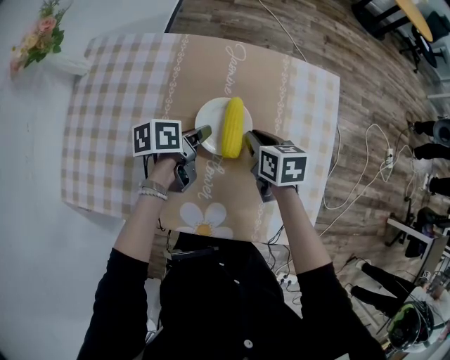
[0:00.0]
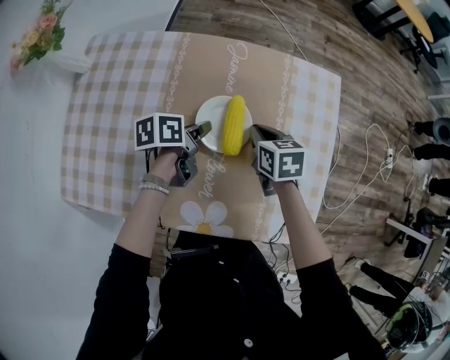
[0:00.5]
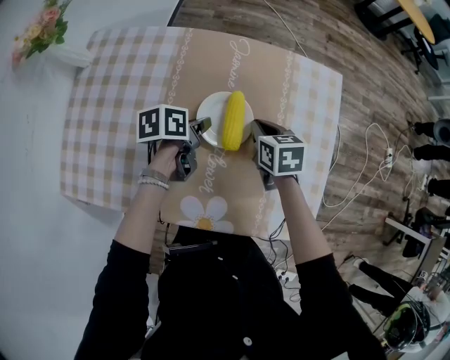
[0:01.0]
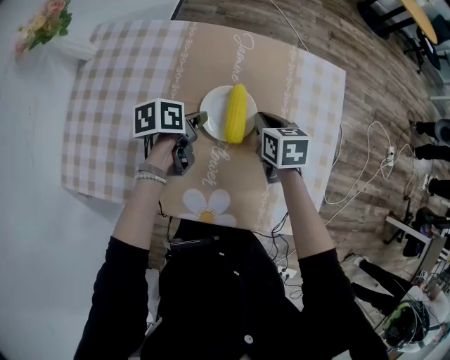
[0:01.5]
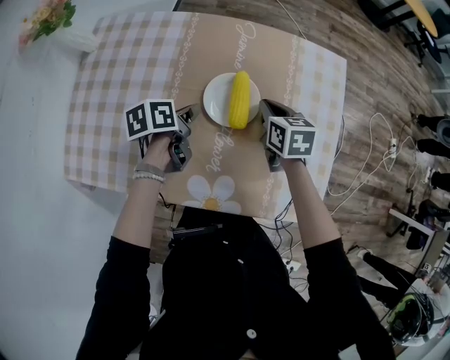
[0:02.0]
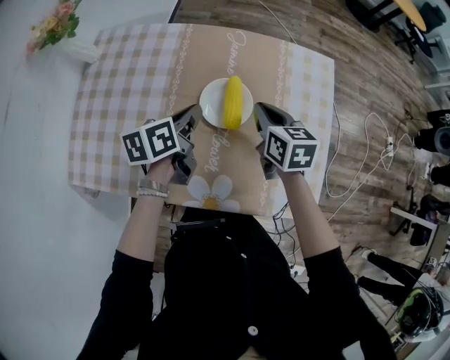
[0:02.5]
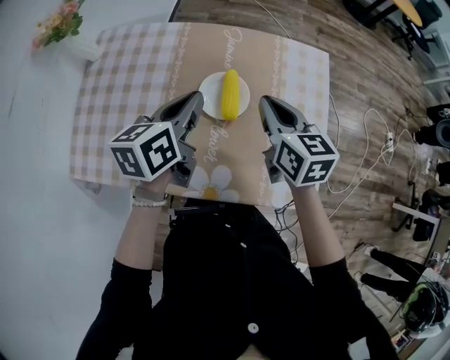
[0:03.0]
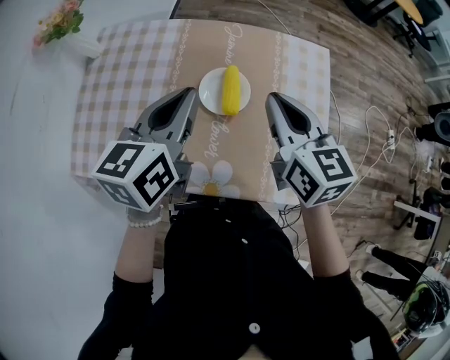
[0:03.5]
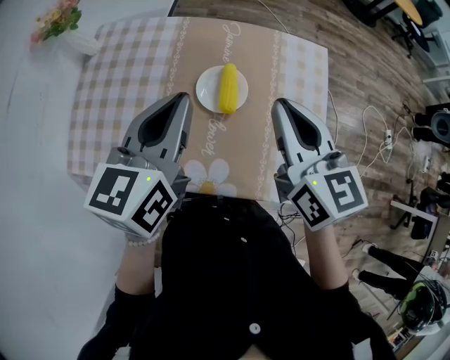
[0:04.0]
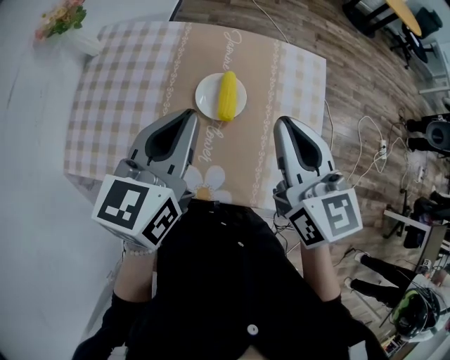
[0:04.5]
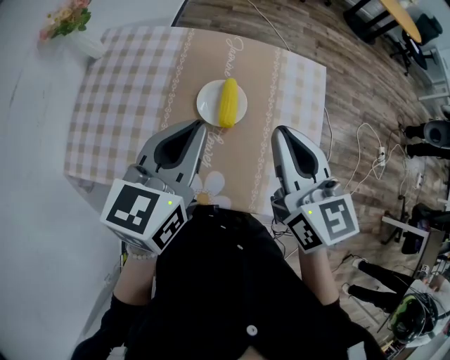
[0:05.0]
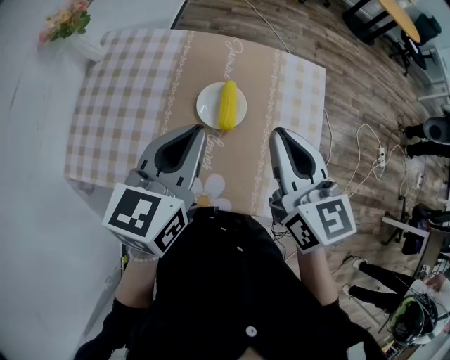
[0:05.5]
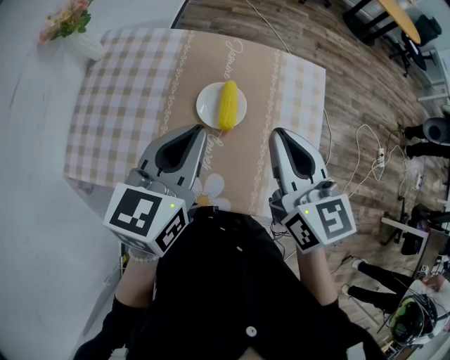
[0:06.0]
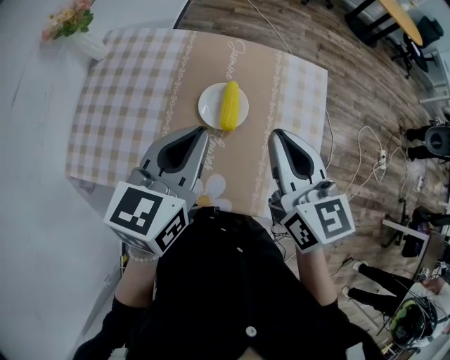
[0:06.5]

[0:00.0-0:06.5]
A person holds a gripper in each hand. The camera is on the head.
0:00.0 to 0:02.0: The left gripper shifts approximately 5 cm to the left.
0:02.0 to 0:04.5: The left gripper heads upward, covering roughly 30 cm, and changes its angle by about 50 degrees, while the right gripper moves upward and backward, about 30 cm, and points its fingers about 30 degrees further upward.
0:04.5 to 0:06.5: The grippers make only small movements.

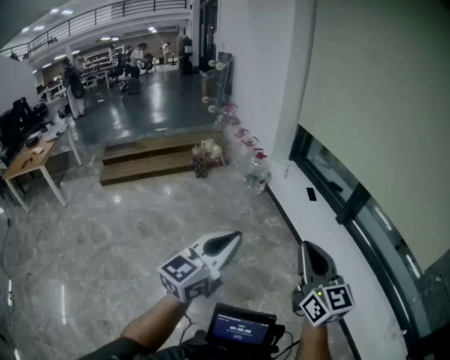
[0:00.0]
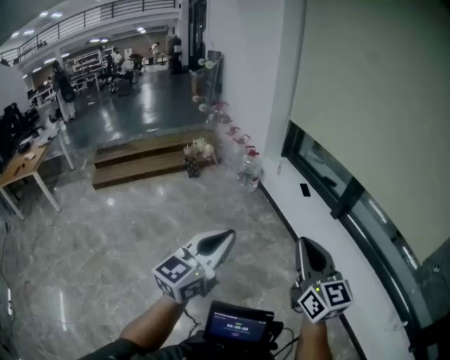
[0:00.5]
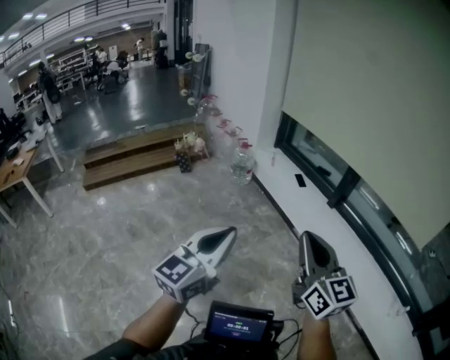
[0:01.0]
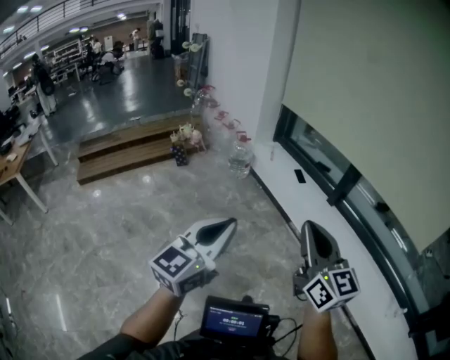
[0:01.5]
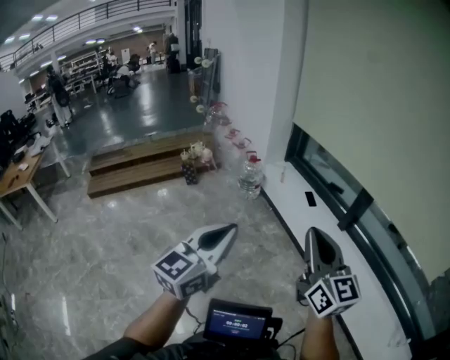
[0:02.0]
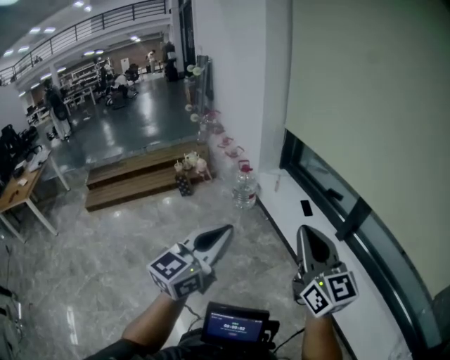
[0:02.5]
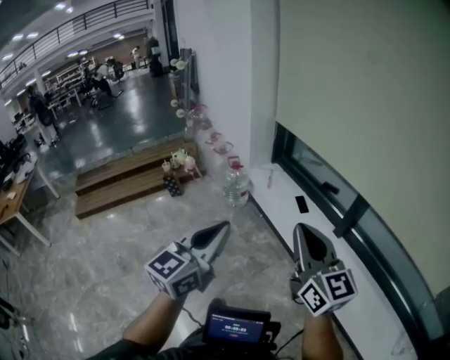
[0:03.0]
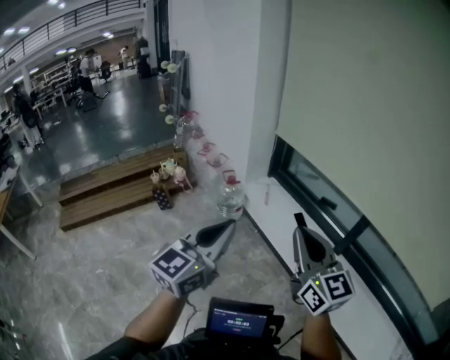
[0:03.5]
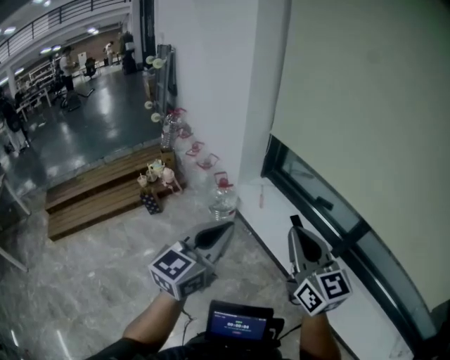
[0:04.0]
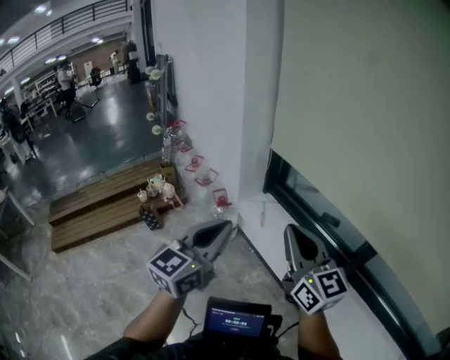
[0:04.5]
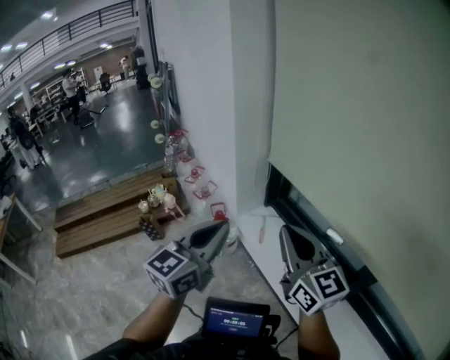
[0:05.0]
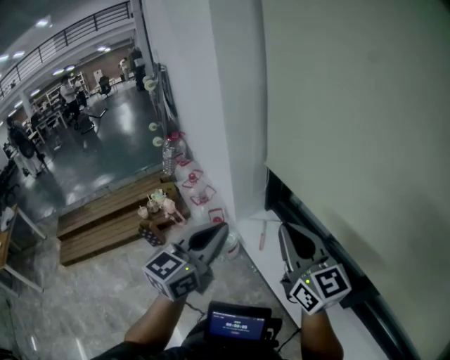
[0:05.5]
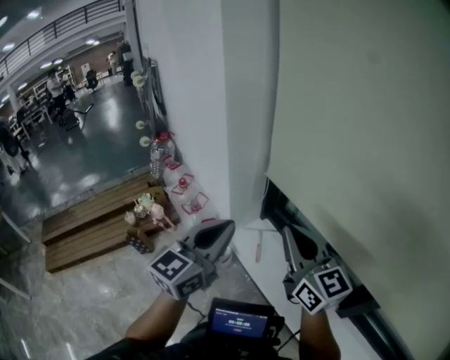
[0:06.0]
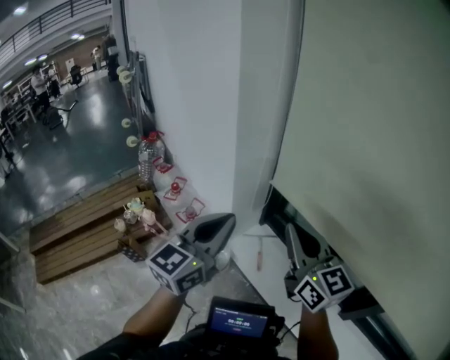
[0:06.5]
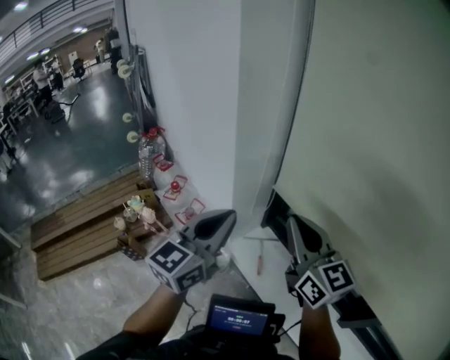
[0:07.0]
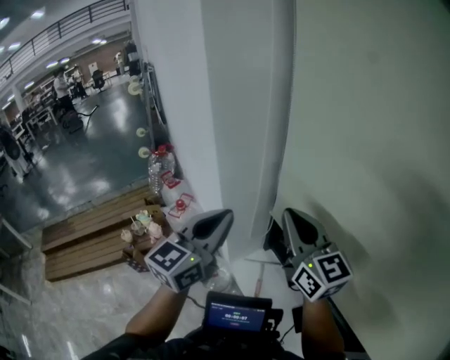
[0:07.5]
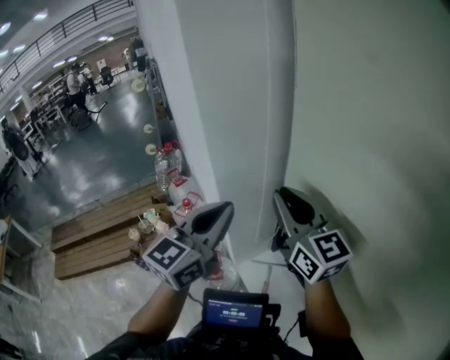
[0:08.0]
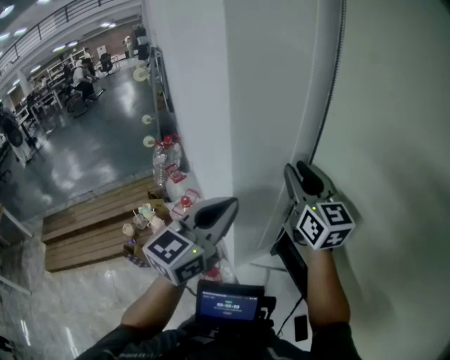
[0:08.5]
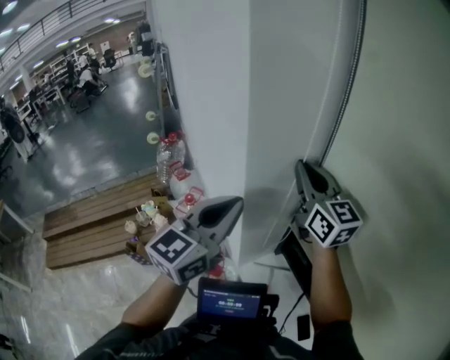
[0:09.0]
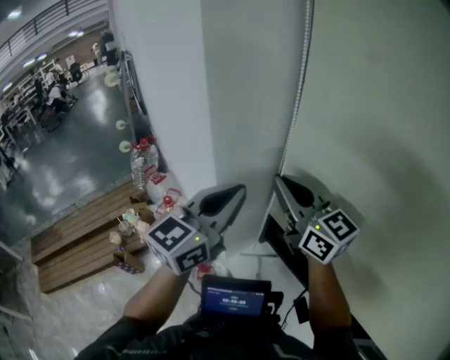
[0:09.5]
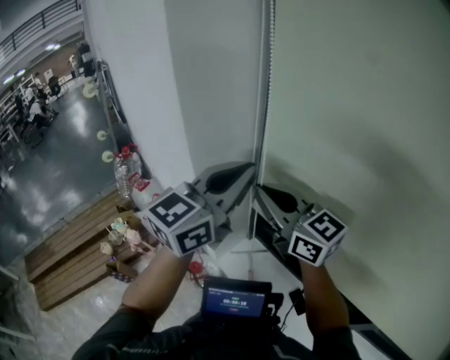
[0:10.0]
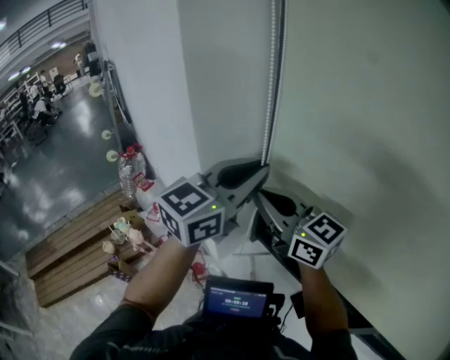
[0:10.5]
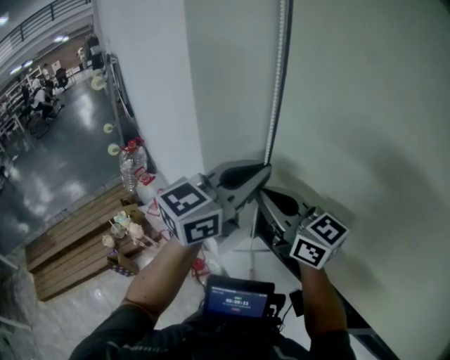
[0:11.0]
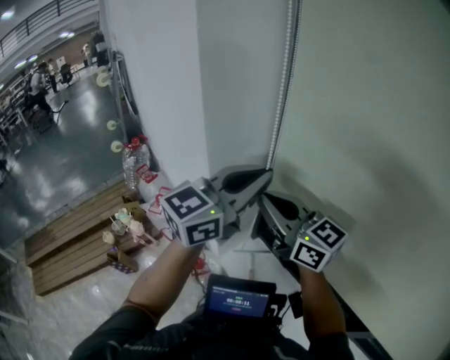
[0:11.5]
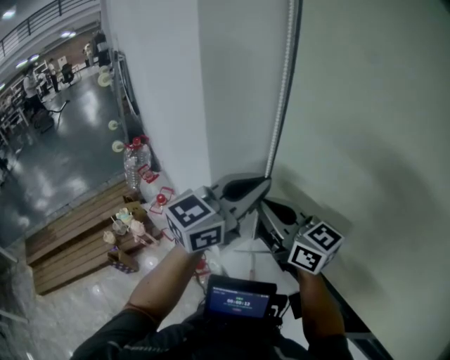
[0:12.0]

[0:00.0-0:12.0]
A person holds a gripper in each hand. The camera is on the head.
0:00.0 to 0:02.0: The two grippers go some 15 cm forward.
0:02.0 to 0:04.0: The grippers both shift forward by approximately 40 cm.
0:04.0 to 0:06.0: The pair of grippers is taken forward, approximately 40 cm.
0:06.0 to 0:08.0: Both grippers travel together forward, some 30 cm.
0:08.0 to 0:10.0: The left gripper is displaced upward and to the right by approximately 10 cm, and turns by roughly 20 degrees; the right gripper goes forward and returns, approximately 10 cm each way.
0:10.0 to 0:12.0: The grippers make only small movements.

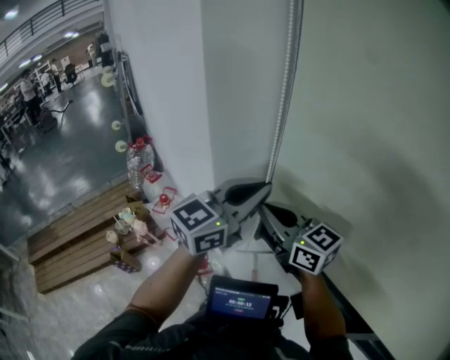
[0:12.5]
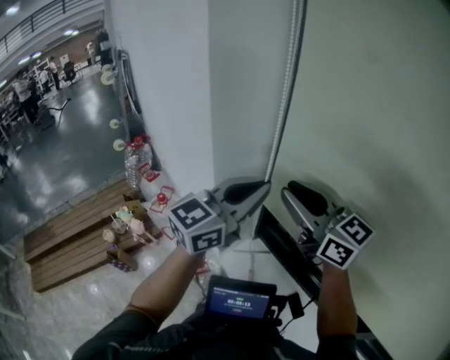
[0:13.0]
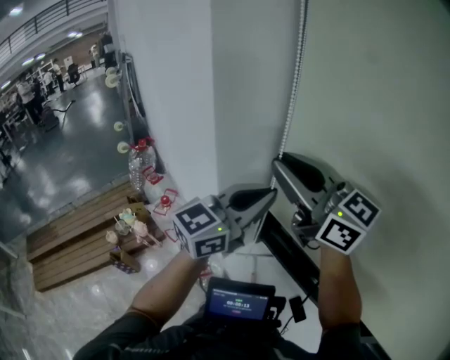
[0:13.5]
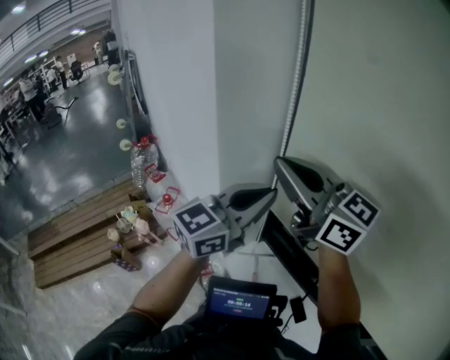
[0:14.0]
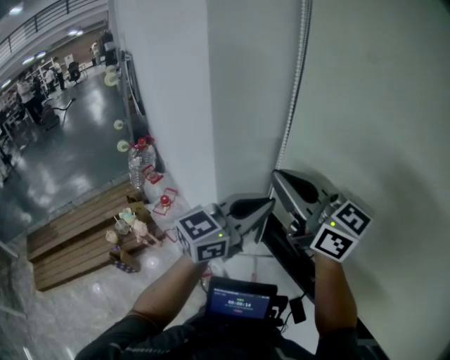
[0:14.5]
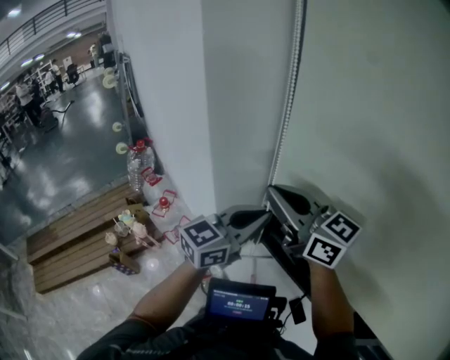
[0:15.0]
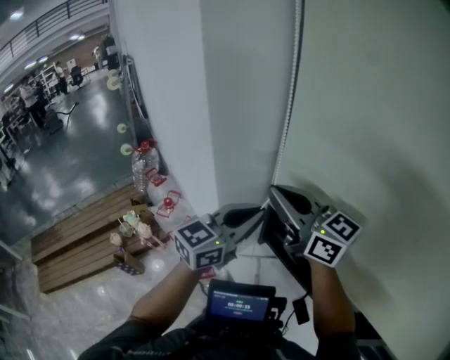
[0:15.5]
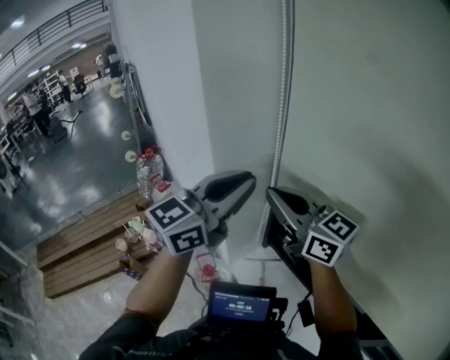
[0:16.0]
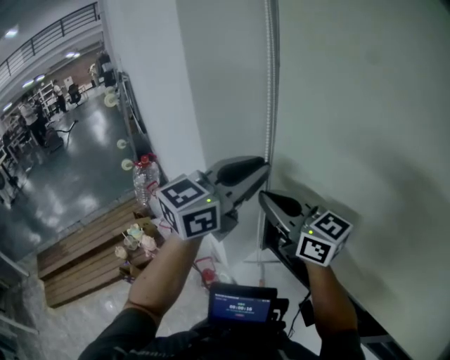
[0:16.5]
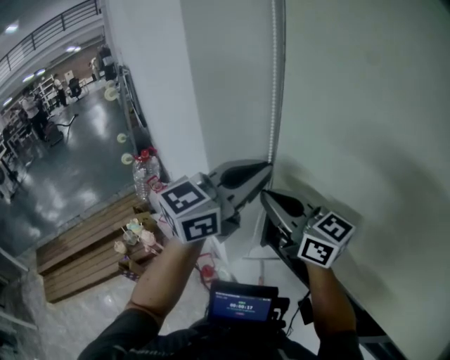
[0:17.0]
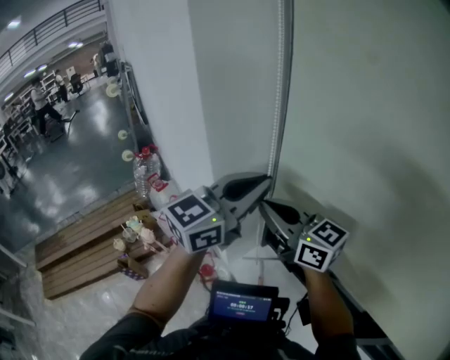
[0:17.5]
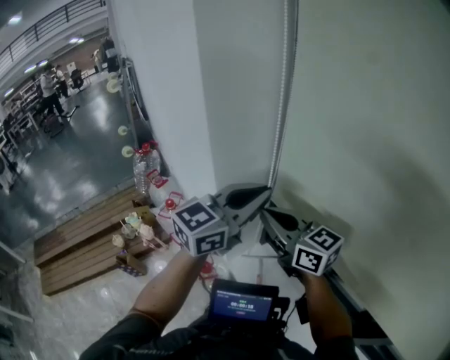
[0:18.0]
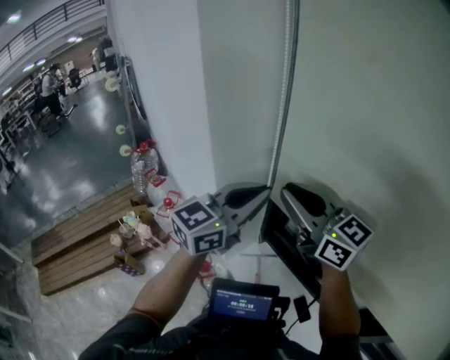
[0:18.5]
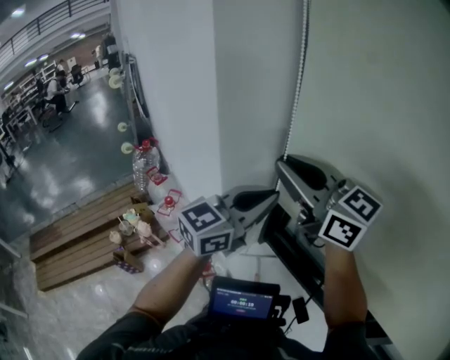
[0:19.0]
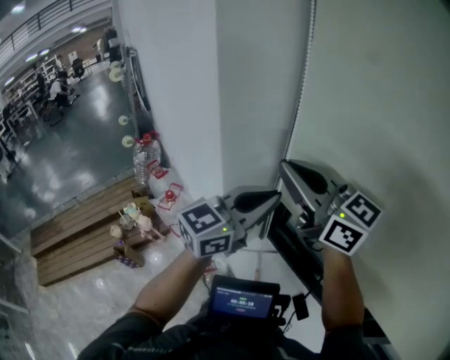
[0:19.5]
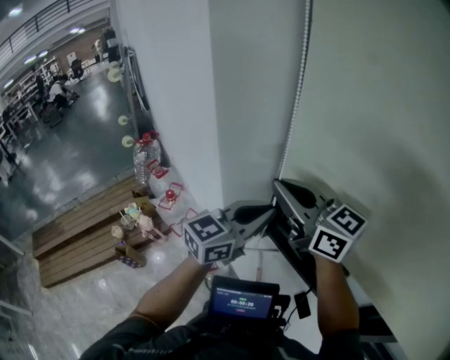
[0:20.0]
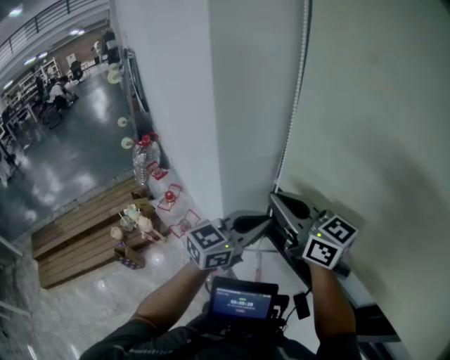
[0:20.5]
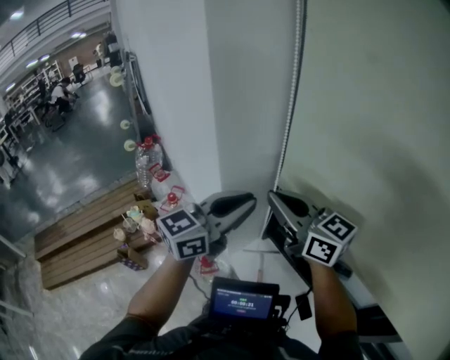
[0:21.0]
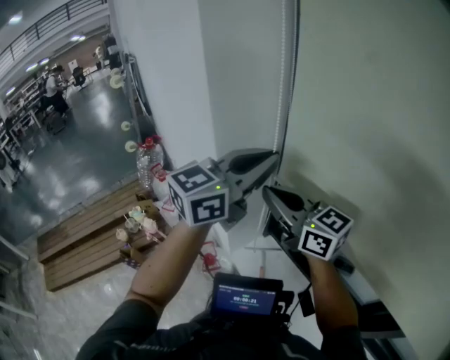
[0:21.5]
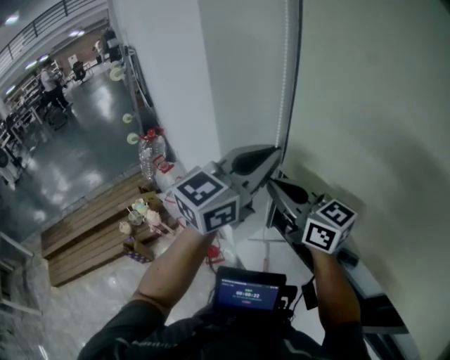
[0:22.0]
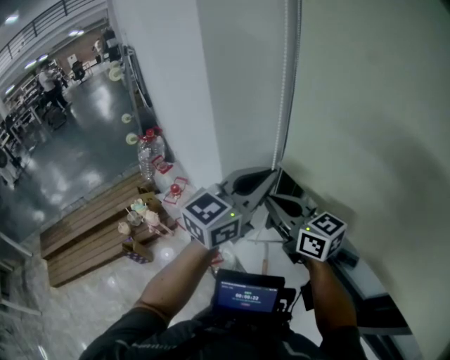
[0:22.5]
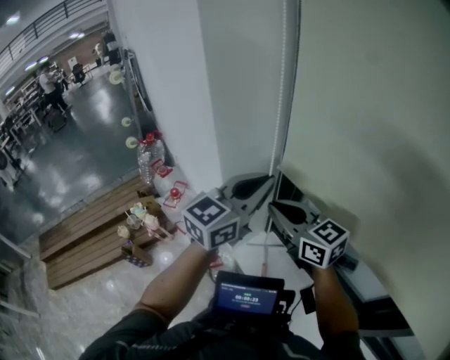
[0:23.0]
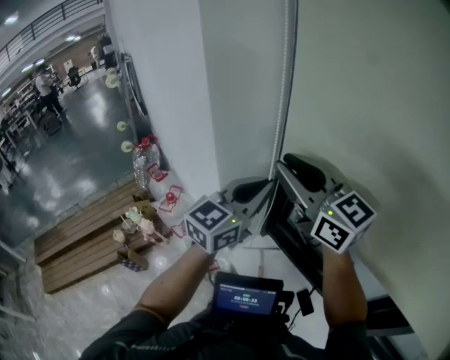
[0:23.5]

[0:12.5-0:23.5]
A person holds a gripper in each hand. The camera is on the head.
0:12.5 to 0:14.5: The right gripper heads upward, covering about 10 cm, and opens and closes again.
0:14.5 to 0:16.0: The left gripper moves upward, approximately 5 cm.
0:16.0 to 0:18.0: Both grippers move downward, some 5 cm.
0:18.0 to 0:20.0: The left gripper moves downward, some 5 cm, while the right gripper heads upward, covering about 10 cm.
0:20.0 to 0:21.5: The left gripper moves upward, approximately 15 cm.
0:21.5 to 0:23.5: The left gripper shifts about 10 cm downward. Meanwhile the right gripper travels upward by some 10 cm, and opens its fingers.
